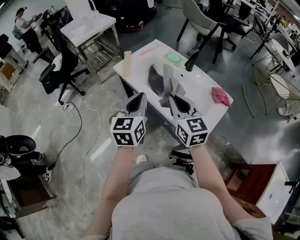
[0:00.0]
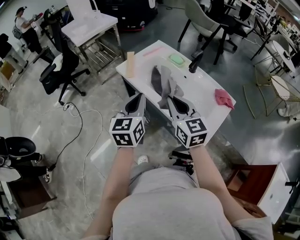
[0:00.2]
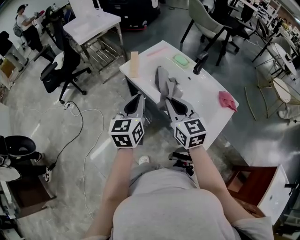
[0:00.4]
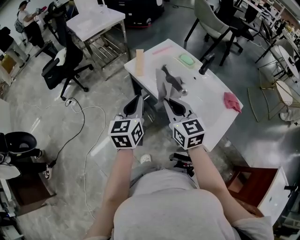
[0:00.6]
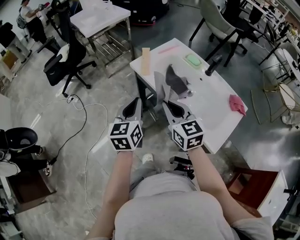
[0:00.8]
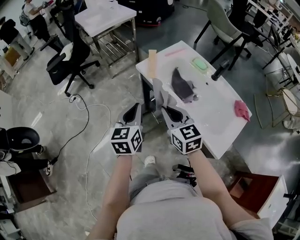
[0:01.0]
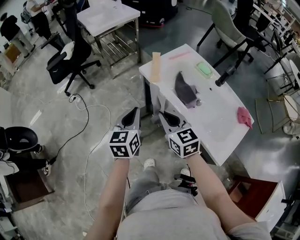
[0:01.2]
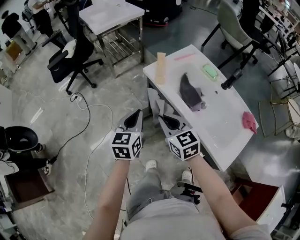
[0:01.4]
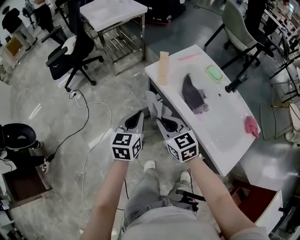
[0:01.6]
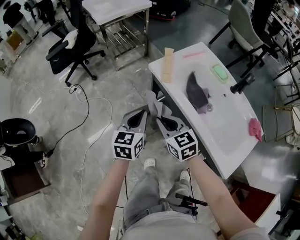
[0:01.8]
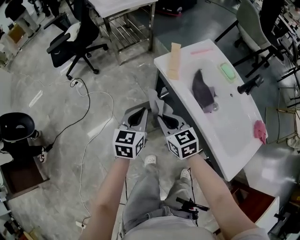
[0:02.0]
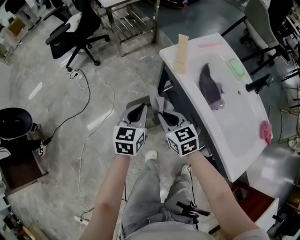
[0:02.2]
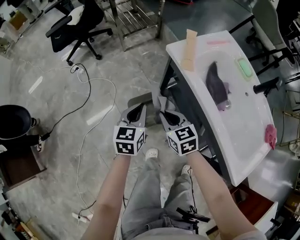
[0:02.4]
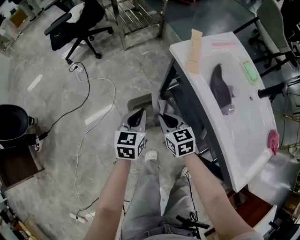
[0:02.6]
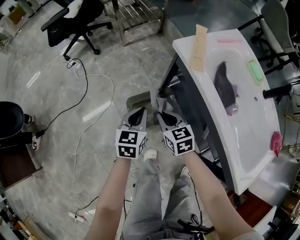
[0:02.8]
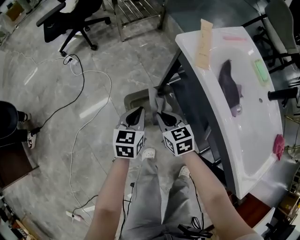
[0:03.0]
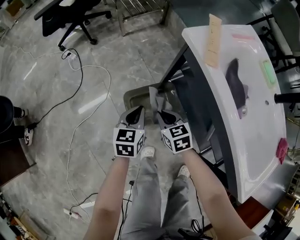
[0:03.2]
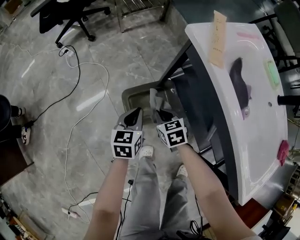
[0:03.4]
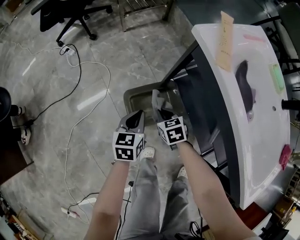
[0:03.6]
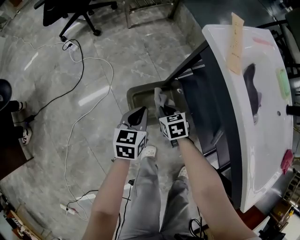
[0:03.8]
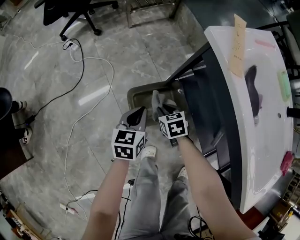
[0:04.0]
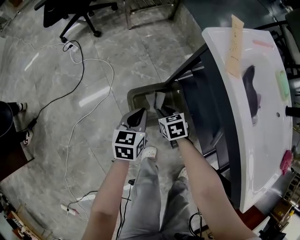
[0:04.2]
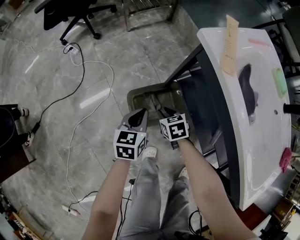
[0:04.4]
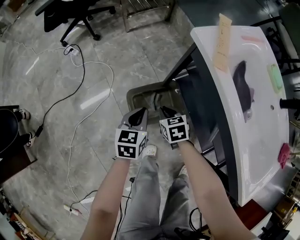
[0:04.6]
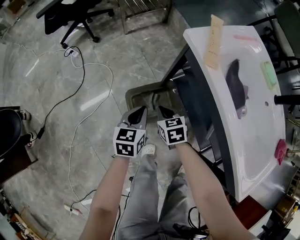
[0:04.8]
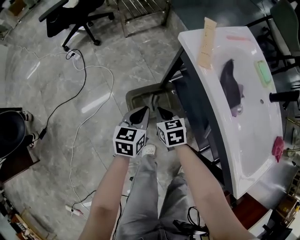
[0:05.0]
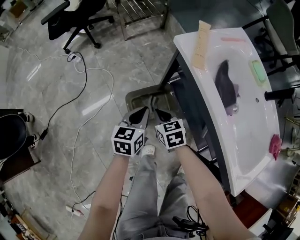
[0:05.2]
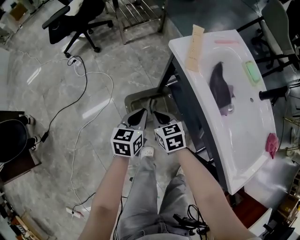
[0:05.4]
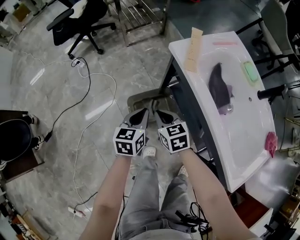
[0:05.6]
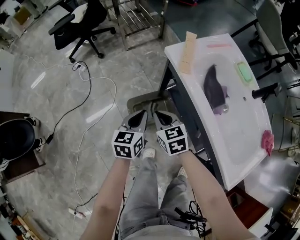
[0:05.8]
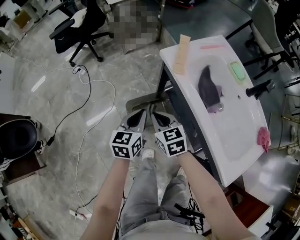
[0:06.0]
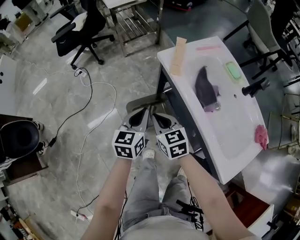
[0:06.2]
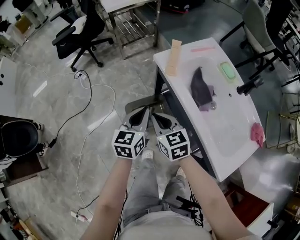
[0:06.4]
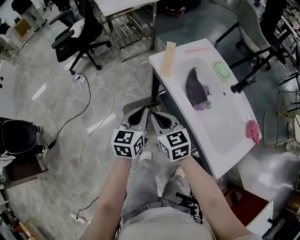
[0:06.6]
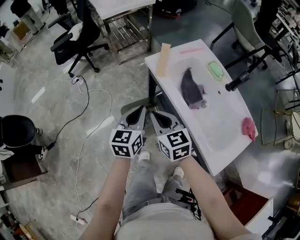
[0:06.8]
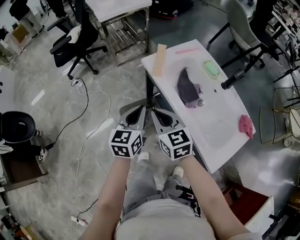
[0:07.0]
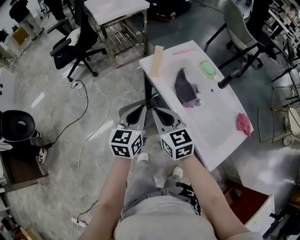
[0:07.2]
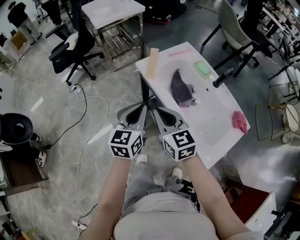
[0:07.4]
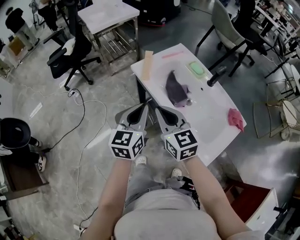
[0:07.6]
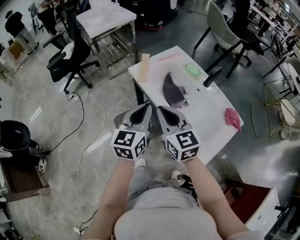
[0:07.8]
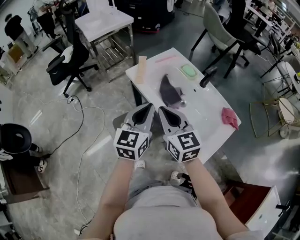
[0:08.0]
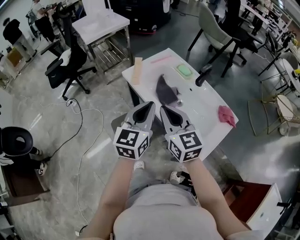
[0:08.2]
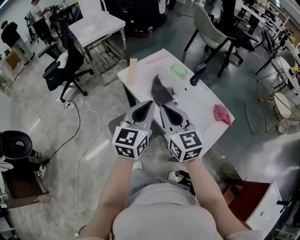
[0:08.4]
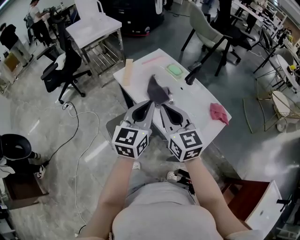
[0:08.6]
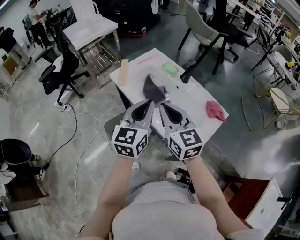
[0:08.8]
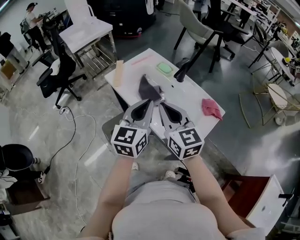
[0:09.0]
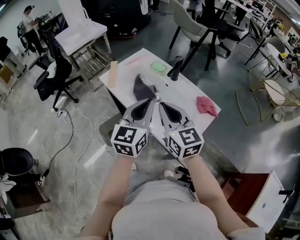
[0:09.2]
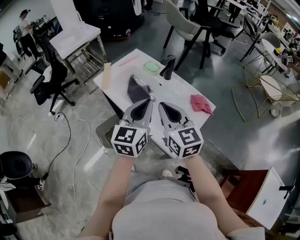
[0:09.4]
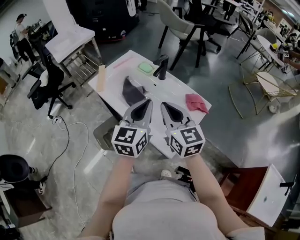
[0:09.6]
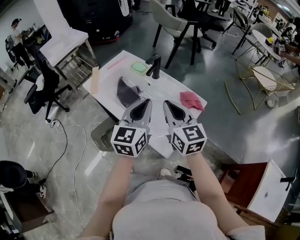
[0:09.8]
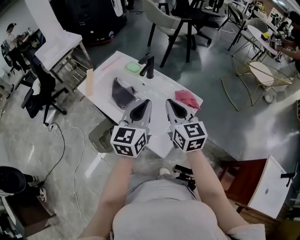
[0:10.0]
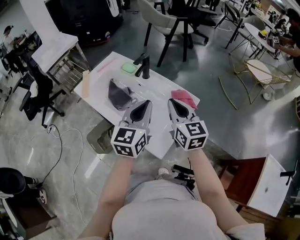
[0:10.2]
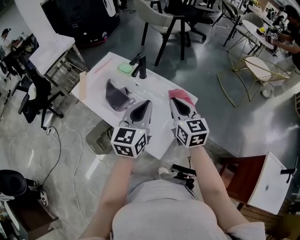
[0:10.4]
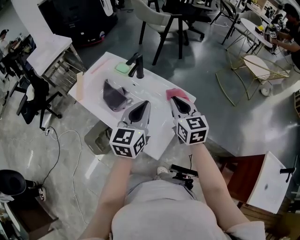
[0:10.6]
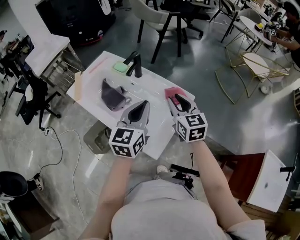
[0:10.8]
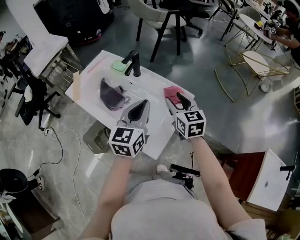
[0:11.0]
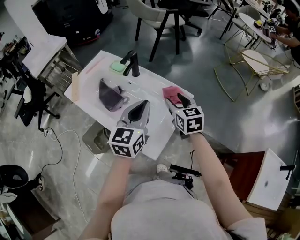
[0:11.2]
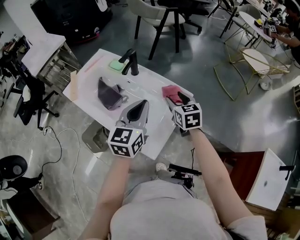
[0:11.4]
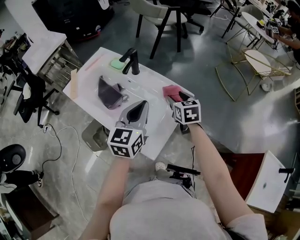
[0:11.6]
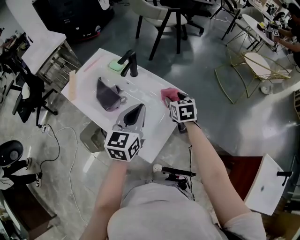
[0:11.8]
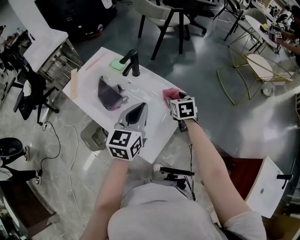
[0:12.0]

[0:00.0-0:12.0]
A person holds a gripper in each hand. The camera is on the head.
0:00.0 to 0:01.6: The left gripper heads to the left, downward and forward, covering about 25 cm, while the right gripper is displaced to the left and downward by some 25 cm, and turns by roughly 30 degrees.
0:01.6 to 0:03.0: Both grippers move downward, roughly 25 cm.
0:03.0 to 0:04.4: The left gripper goes about 5 cm downward. Meanwhile the right gripper goes some 15 cm downward, and opens.
0:04.4 to 0:06.0: Both grippers travel together upward, some 25 cm. The right gripper rotates approximately 20 degrees, and closes its fingers.
0:06.0 to 0:07.6: The grippers both shift upward and to the right by roughly 25 cm. The right gripper changes its angle by some 20 degrees.
0:07.6 to 0:09.0: The right gripper goes about 15 cm to the right, while the left gripper shifts roughly 20 cm to the right and upward.
0:09.0 to 0:10.4: Both grippers travel together to the right, some 20 cm.
0:10.4 to 0:12.0: The right gripper travels downward, forward and to the right by approximately 20 cm, points its fingers roughly 30 degrees further downward, and opens.

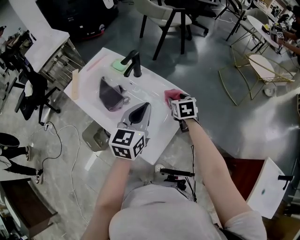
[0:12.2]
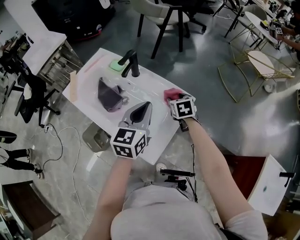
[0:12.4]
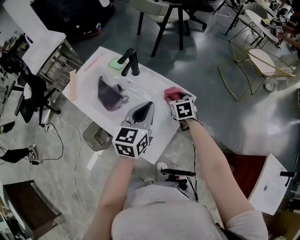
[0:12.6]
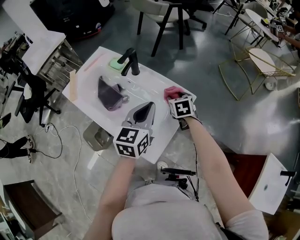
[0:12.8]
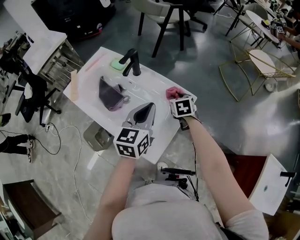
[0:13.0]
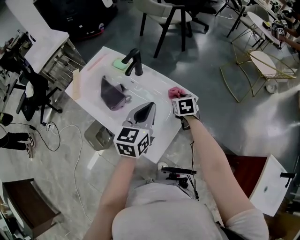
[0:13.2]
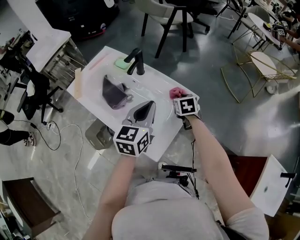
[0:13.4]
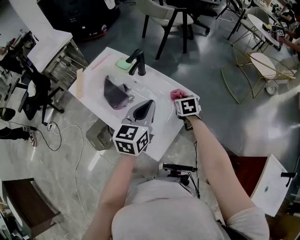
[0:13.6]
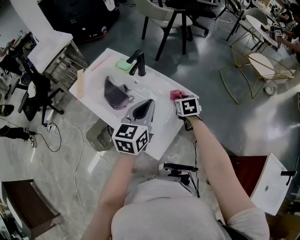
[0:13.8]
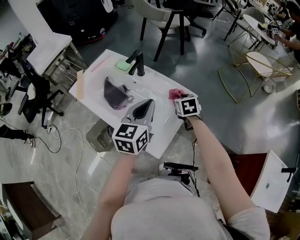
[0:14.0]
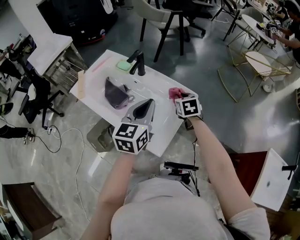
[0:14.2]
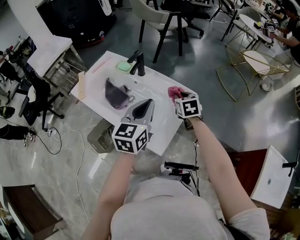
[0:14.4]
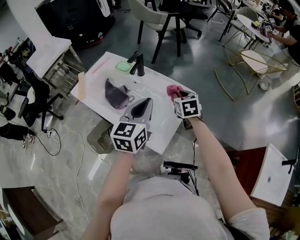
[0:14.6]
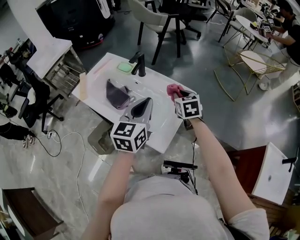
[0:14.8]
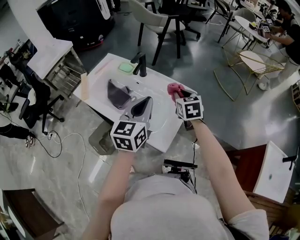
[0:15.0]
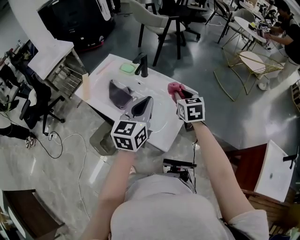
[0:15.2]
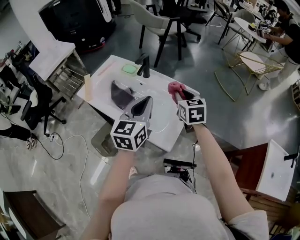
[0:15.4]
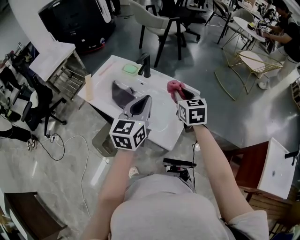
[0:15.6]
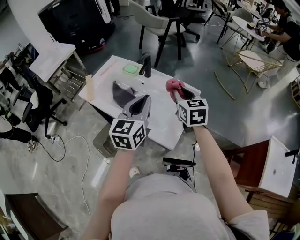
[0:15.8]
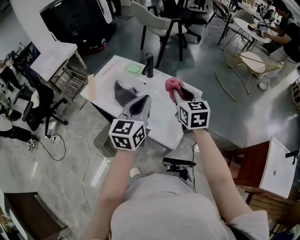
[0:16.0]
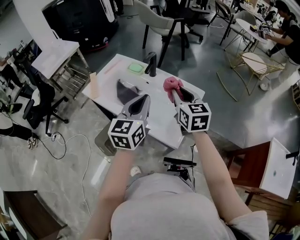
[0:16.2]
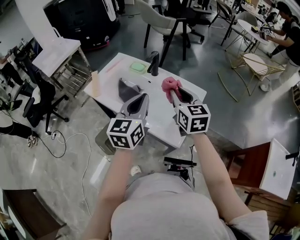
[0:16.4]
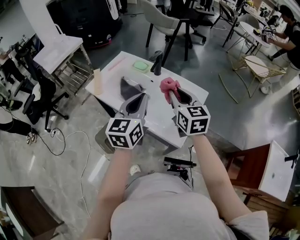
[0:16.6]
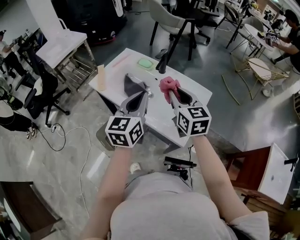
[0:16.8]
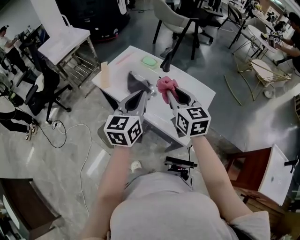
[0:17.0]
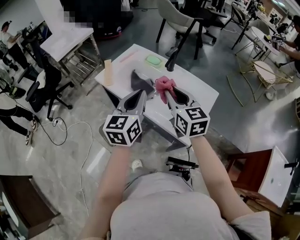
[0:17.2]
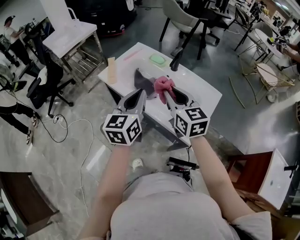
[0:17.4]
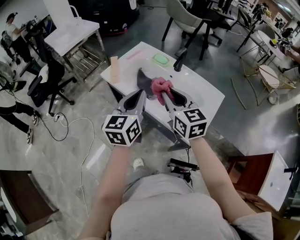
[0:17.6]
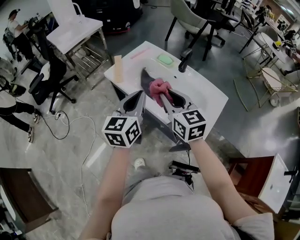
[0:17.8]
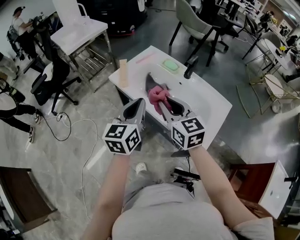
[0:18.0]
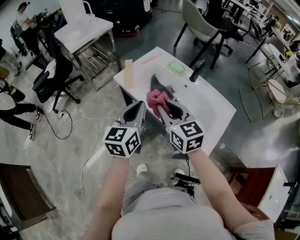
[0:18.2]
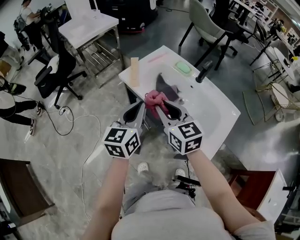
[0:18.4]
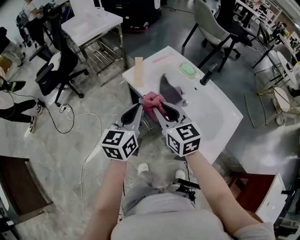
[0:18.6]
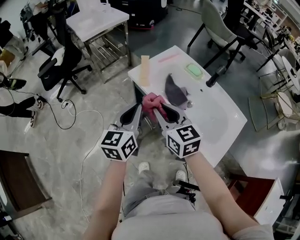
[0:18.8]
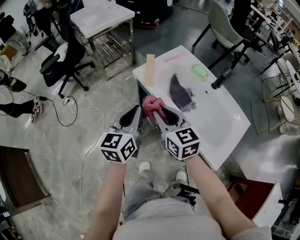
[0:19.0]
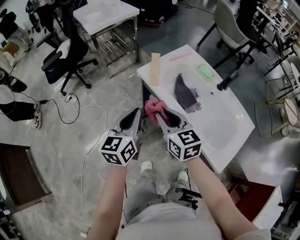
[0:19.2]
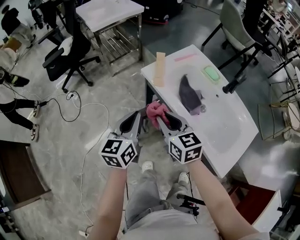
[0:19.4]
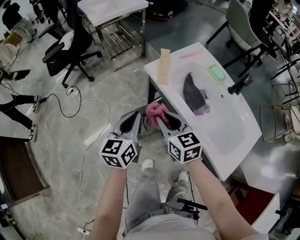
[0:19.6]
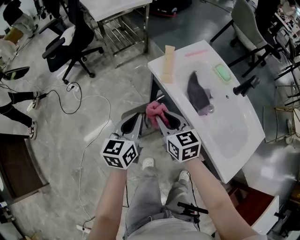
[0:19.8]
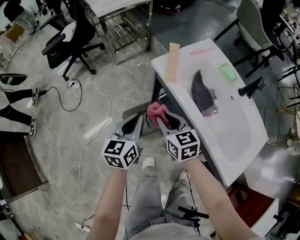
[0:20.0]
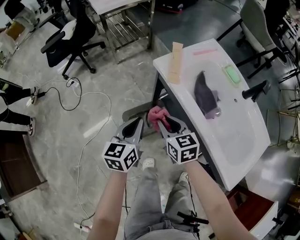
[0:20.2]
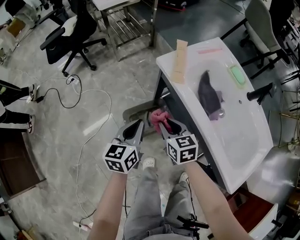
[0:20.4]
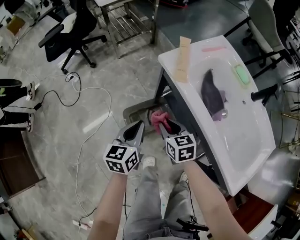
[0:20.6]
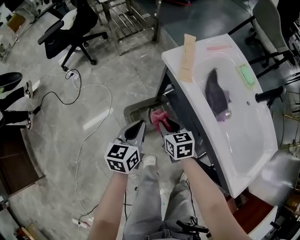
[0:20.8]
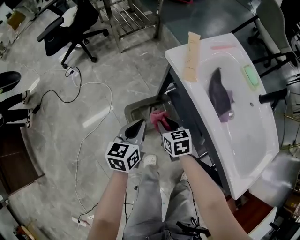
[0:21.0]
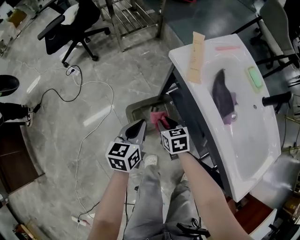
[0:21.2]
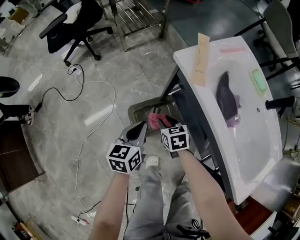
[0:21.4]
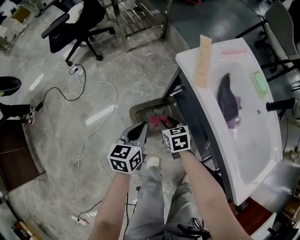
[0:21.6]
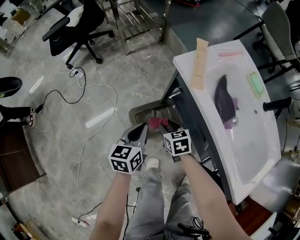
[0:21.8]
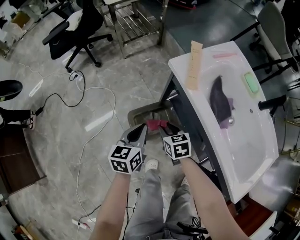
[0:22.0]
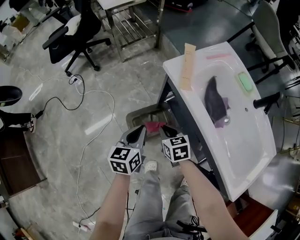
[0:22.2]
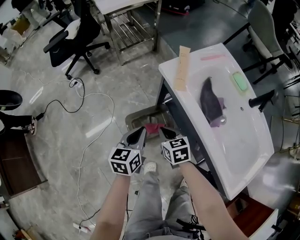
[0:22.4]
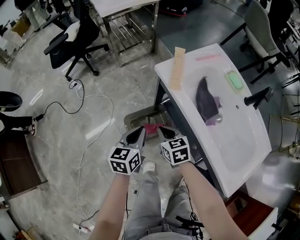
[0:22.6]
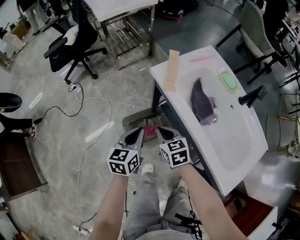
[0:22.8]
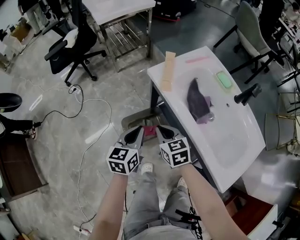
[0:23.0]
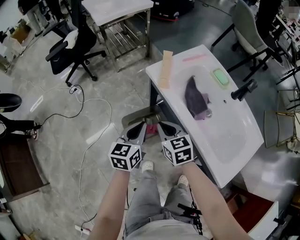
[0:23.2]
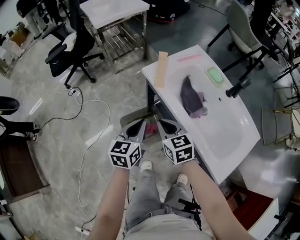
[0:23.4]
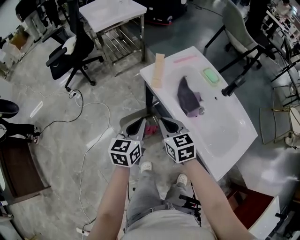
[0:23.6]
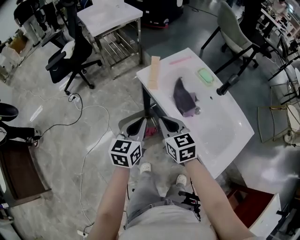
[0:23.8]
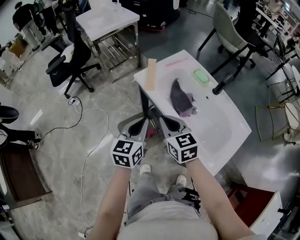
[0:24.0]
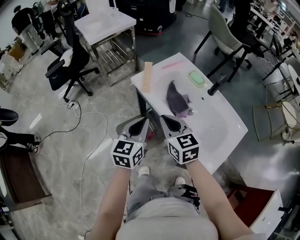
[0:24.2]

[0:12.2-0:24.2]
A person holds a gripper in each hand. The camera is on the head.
0:12.2 to 0:13.8: The right gripper closes up.
0:13.8 to 0:15.2: The right gripper heads upward and backward, covering roughly 15 cm. The left gripper changes place by some 5 cm.
0:15.2 to 0:16.6: The right gripper is displaced to the left, upward and backward by some 15 cm; the left gripper heads to the left, covering roughly 10 cm.
0:16.6 to 0:18.2: Both grippers travel together to the left, some 20 cm. The right gripper swivels roughly 20 degrees.
0:18.2 to 0:19.8: The left gripper is displaced to the left and downward by roughly 20 cm; the right gripper shifts about 20 cm downward, to the left and forward.
0:19.8 to 0:21.2: The two grippers go about 20 cm downward. The right gripper changes its angle by approximately 20 degrees.
0:21.2 to 0:22.6: The right gripper moves upward, roughly 10 cm, and closes up, while the left gripper heads upward, covering about 5 cm.
0:22.6 to 0:24.2: Both grippers move upward and to the right, about 25 cm. The right gripper turns by approximately 20 degrees.
